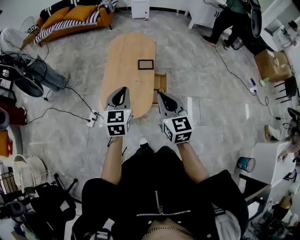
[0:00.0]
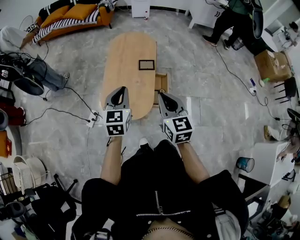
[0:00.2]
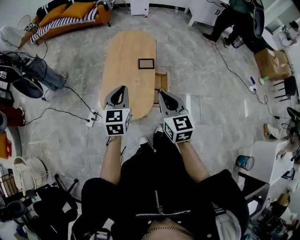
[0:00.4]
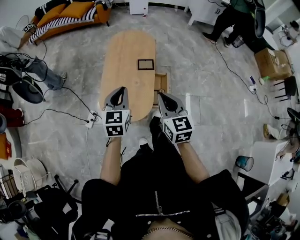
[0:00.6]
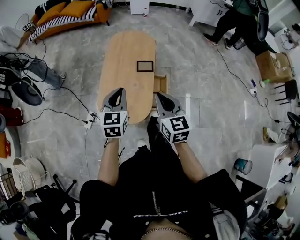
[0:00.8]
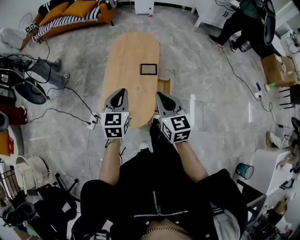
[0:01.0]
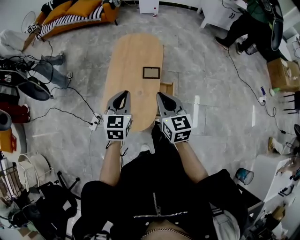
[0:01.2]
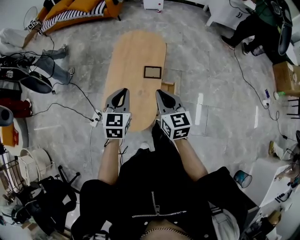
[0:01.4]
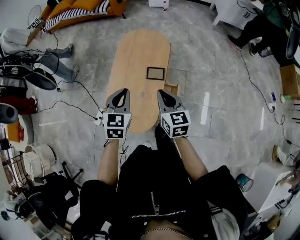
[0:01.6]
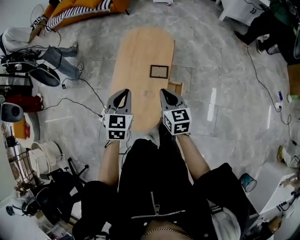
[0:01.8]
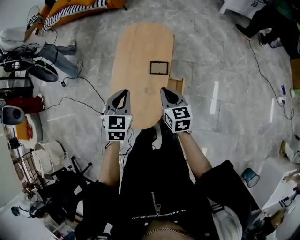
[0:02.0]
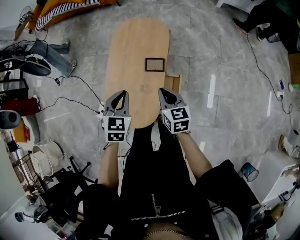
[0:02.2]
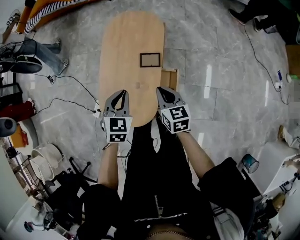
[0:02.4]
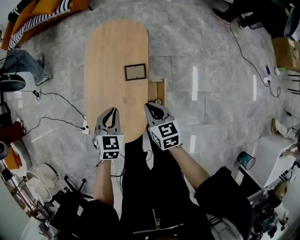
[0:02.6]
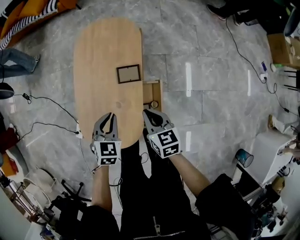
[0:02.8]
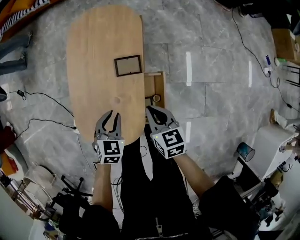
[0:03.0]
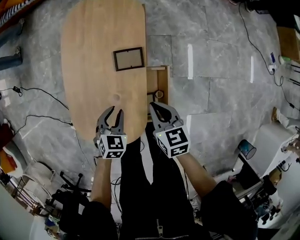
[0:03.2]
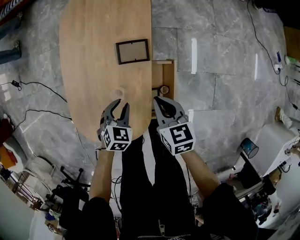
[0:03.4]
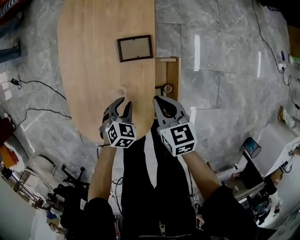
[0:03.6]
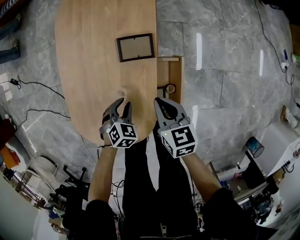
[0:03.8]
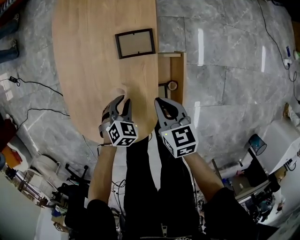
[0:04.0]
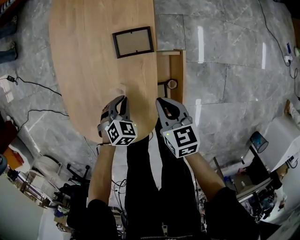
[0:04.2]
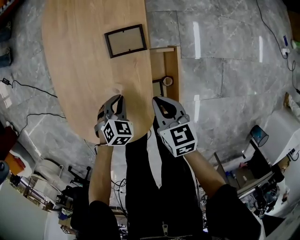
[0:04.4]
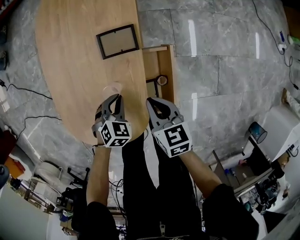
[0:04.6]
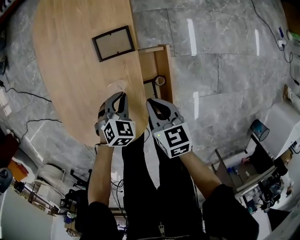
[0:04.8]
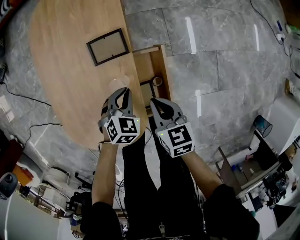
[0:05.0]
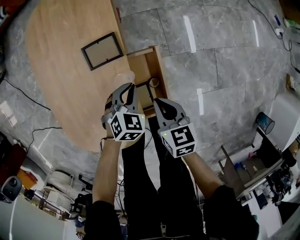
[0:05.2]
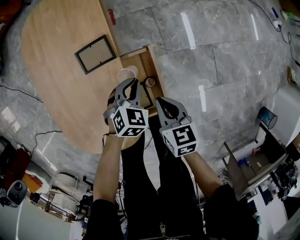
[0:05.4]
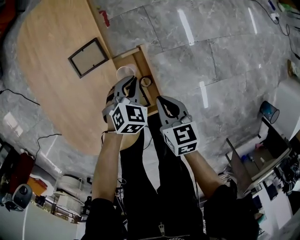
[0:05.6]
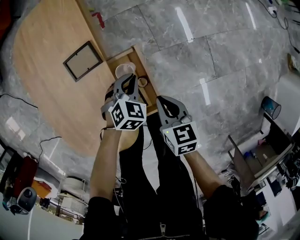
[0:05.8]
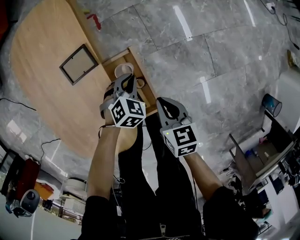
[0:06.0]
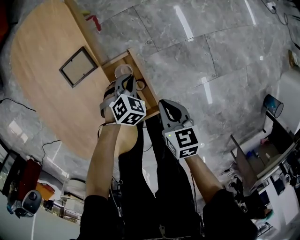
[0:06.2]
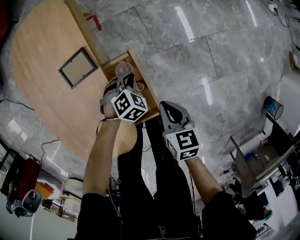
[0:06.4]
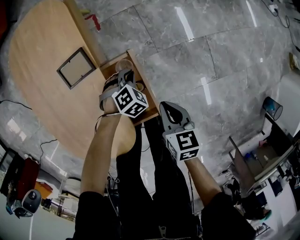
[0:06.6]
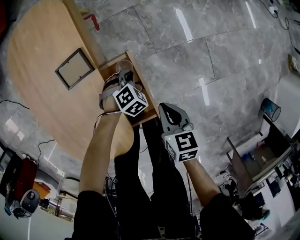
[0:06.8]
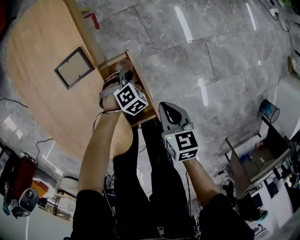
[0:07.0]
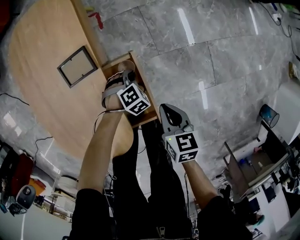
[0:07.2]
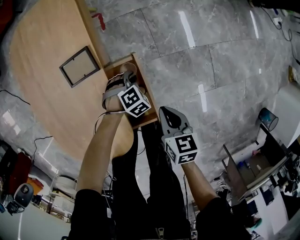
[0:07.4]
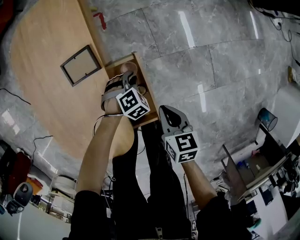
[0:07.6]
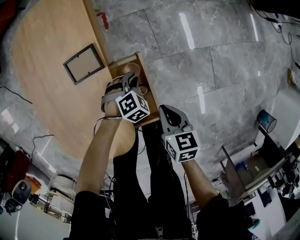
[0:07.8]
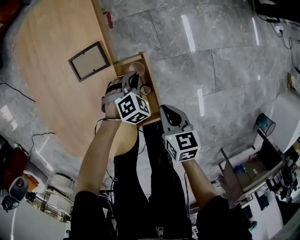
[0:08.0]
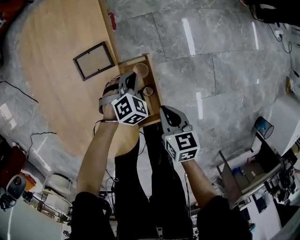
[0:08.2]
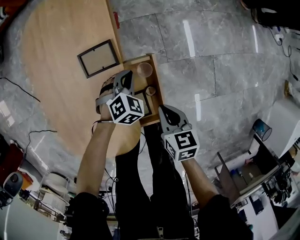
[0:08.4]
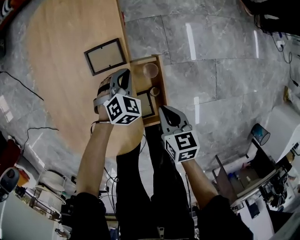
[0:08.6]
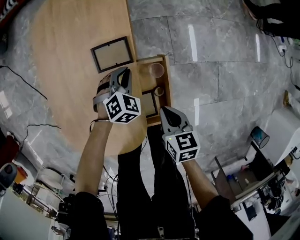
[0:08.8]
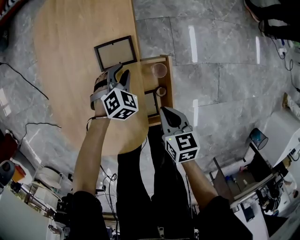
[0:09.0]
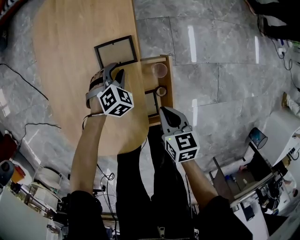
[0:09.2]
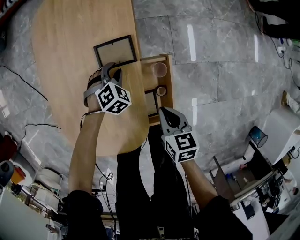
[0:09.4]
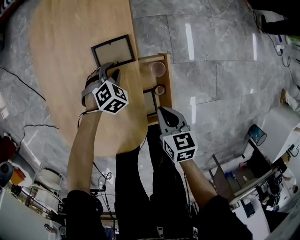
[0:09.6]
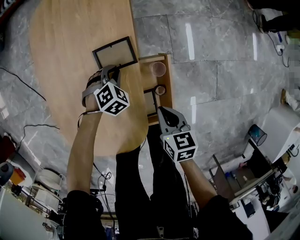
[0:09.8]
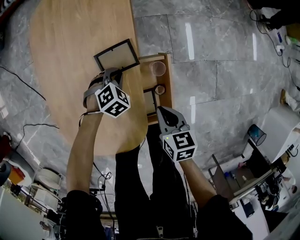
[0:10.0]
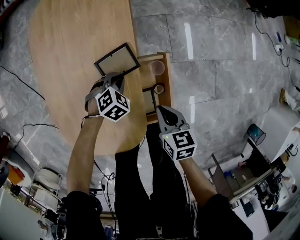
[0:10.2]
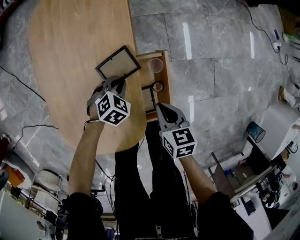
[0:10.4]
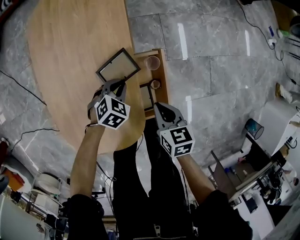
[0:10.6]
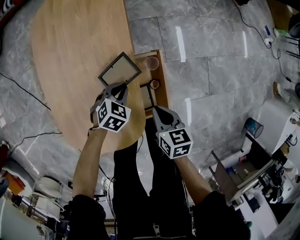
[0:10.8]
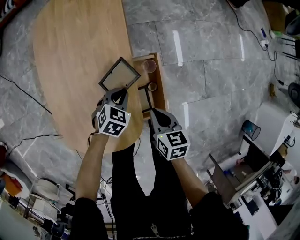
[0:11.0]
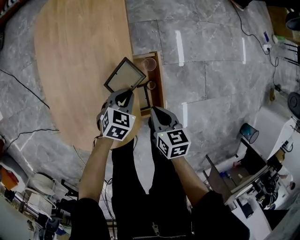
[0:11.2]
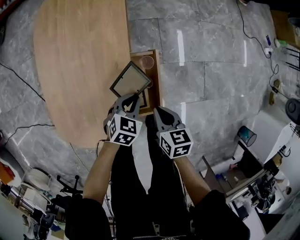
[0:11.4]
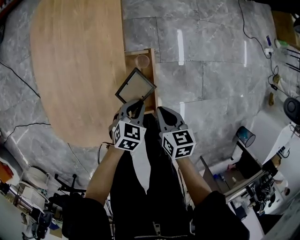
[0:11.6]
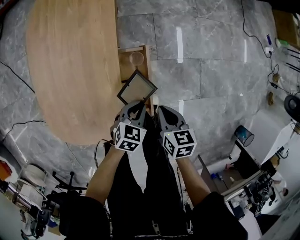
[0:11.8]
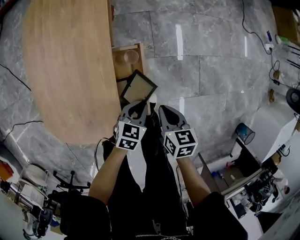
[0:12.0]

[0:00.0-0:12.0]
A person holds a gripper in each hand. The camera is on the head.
0:00.0 to 0:01.6: Both grippers travel together forward, some 25 cm.
0:01.6 to 0:03.0: The two grippers go about 25 cm downward. The right gripper rotates some 20 degrees, while the left gripper changes its angle by about 20 degrees.
0:03.0 to 0:04.4: The grippers both shift downward by roughly 20 cm. The left gripper changes its angle by about 20 degrees.
0:04.4 to 0:06.0: The two grippers go roughly 20 cm to the right. The right gripper swivels about 20 degrees, while the left gripper rotates roughly 20 degrees.
0:06.0 to 0:07.6: The left gripper heads downward, covering about 5 cm.
0:07.6 to 0:09.0: The right gripper goes some 10 cm to the left, while the left gripper shifts approximately 20 cm to the left, upward and forward, and swivels roughly 20 degrees.
0:09.0 to 0:10.4: The left gripper travels backward by approximately 5 cm.
0:10.4 to 0:12.0: The right gripper goes some 15 cm to the right, while the left gripper travels to the right and backward by roughly 25 cm, and rotates about 40 degrees.

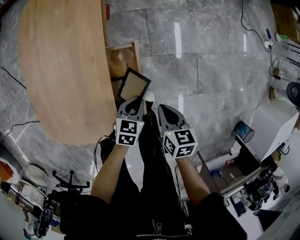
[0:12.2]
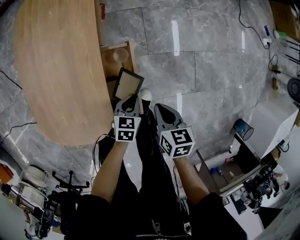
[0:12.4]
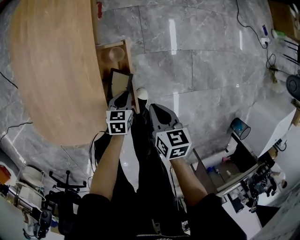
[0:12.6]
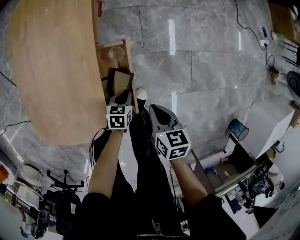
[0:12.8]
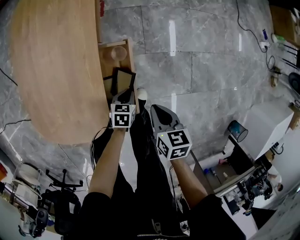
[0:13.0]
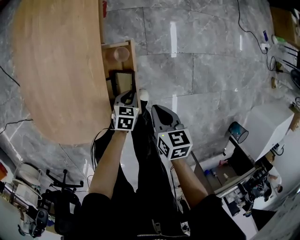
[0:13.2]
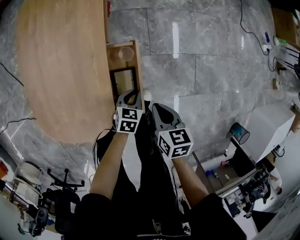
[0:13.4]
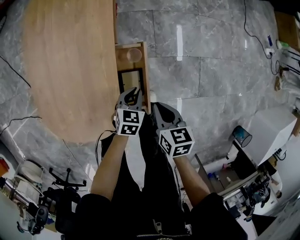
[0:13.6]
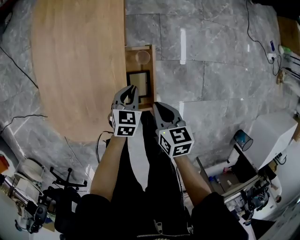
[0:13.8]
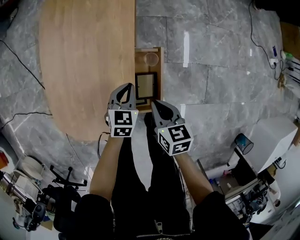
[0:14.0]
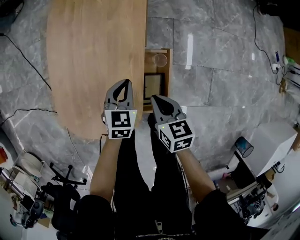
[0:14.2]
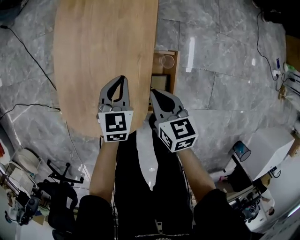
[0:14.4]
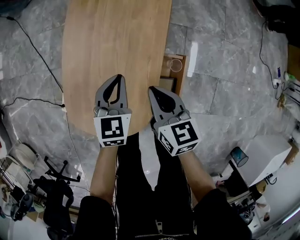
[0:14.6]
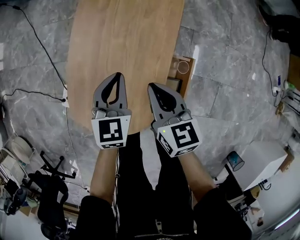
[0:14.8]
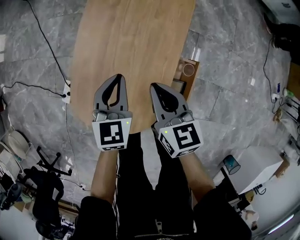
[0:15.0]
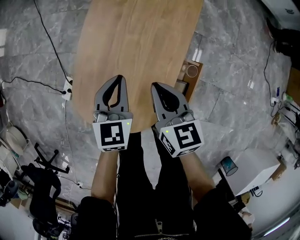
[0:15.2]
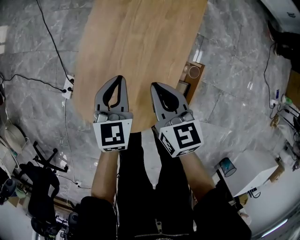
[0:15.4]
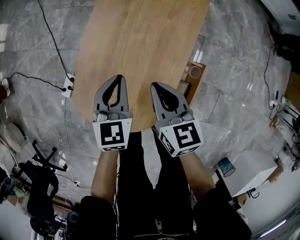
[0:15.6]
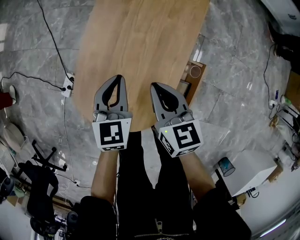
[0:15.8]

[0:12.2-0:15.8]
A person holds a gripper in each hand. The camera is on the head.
0:12.2 to 0:14.0: The right gripper travels to the left by some 10 cm. Meanwhile the left gripper travels to the left and forward by some 15 cm.
0:14.0 to 0:15.8: The left gripper is displaced to the left and upward by roughly 25 cm, and changes its angle by approximately 30 degrees; the right gripper goes about 25 cm to the left, forward and upward, and rotates about 30 degrees.

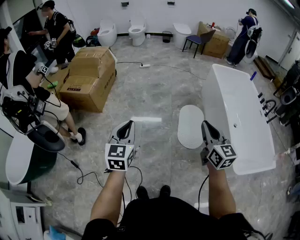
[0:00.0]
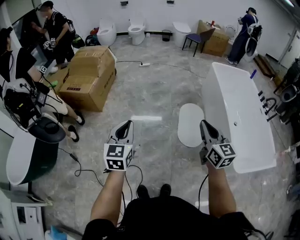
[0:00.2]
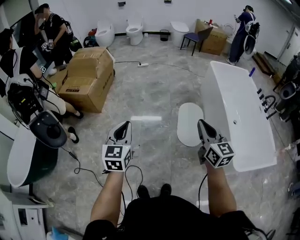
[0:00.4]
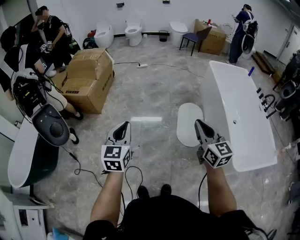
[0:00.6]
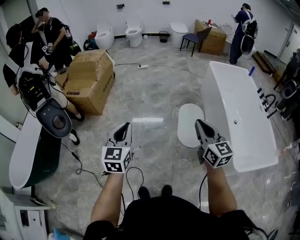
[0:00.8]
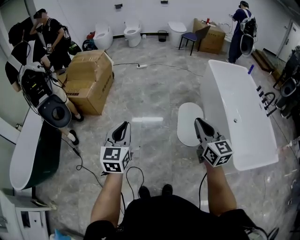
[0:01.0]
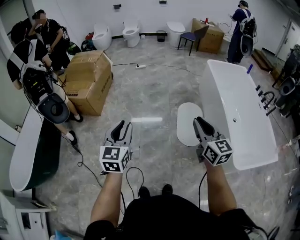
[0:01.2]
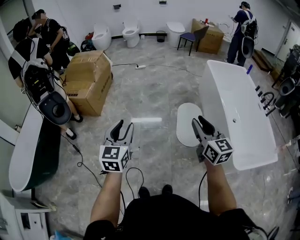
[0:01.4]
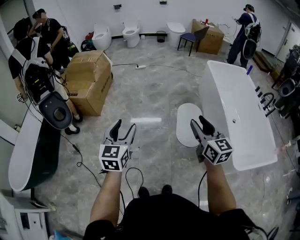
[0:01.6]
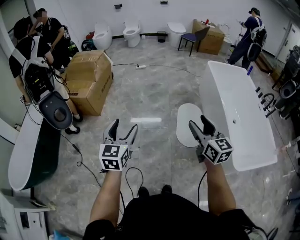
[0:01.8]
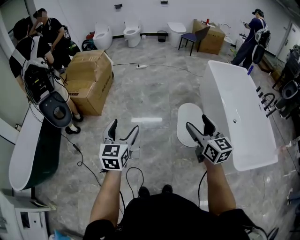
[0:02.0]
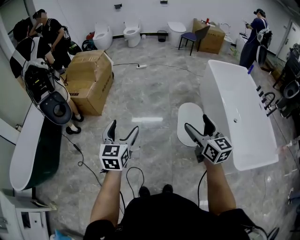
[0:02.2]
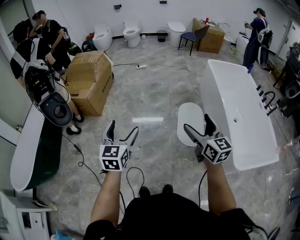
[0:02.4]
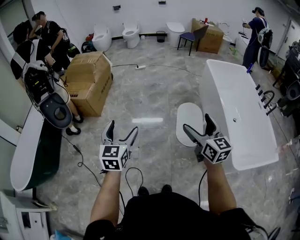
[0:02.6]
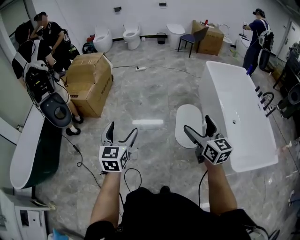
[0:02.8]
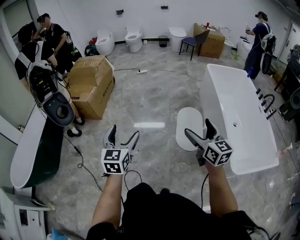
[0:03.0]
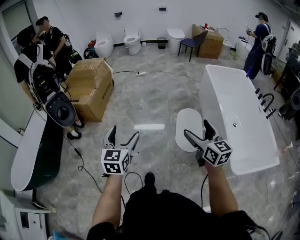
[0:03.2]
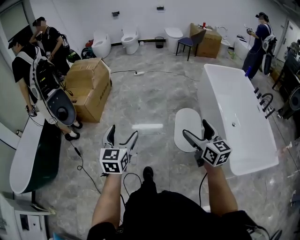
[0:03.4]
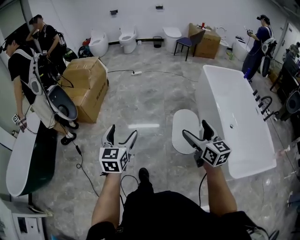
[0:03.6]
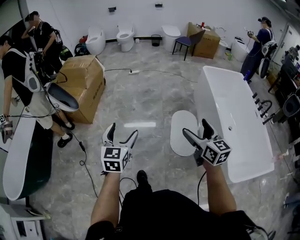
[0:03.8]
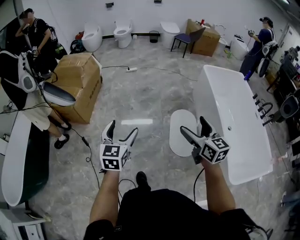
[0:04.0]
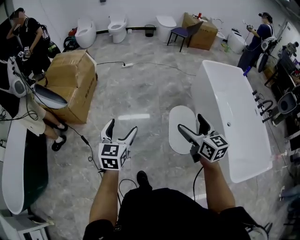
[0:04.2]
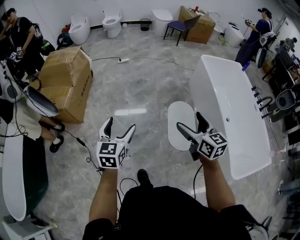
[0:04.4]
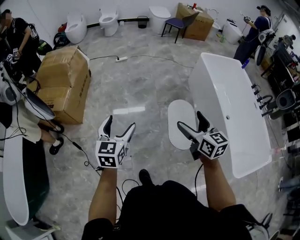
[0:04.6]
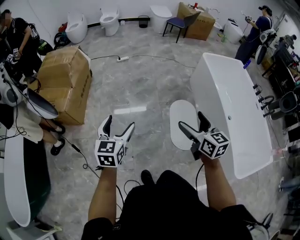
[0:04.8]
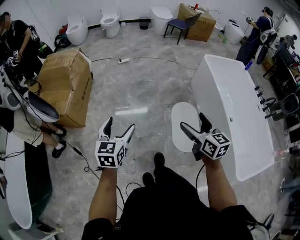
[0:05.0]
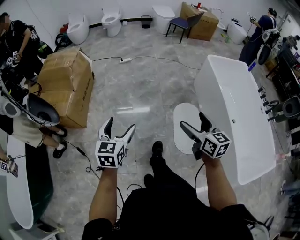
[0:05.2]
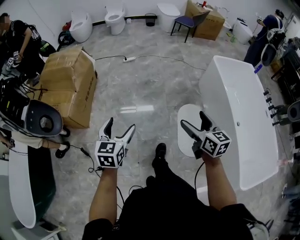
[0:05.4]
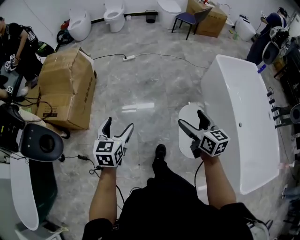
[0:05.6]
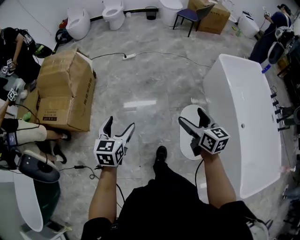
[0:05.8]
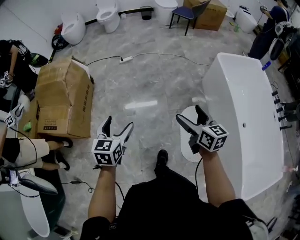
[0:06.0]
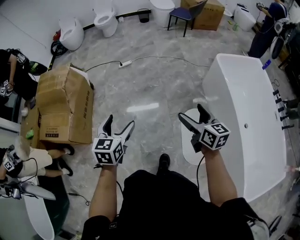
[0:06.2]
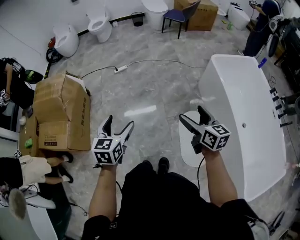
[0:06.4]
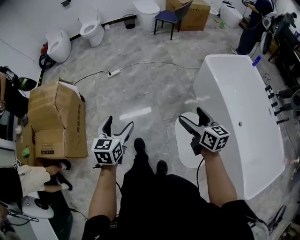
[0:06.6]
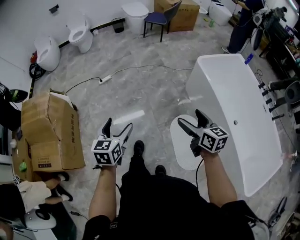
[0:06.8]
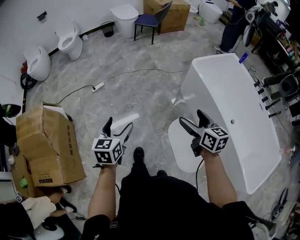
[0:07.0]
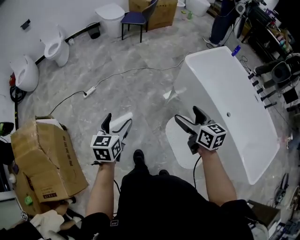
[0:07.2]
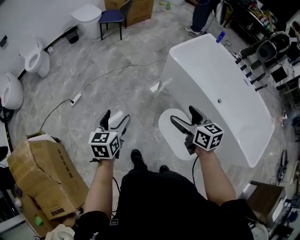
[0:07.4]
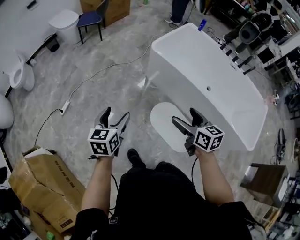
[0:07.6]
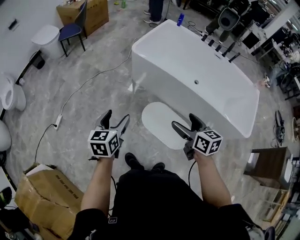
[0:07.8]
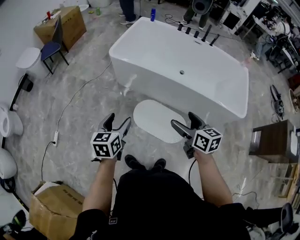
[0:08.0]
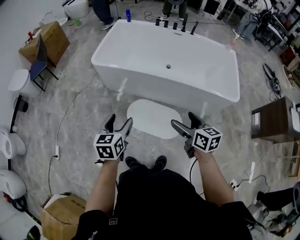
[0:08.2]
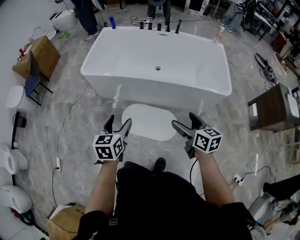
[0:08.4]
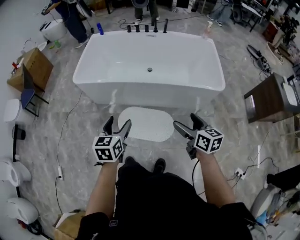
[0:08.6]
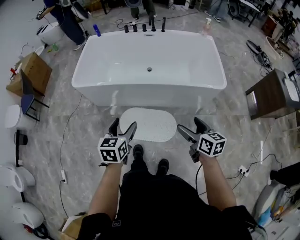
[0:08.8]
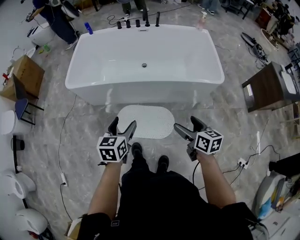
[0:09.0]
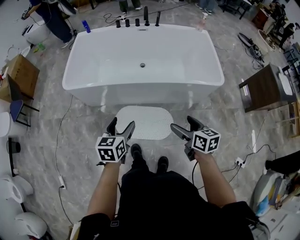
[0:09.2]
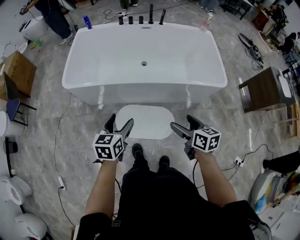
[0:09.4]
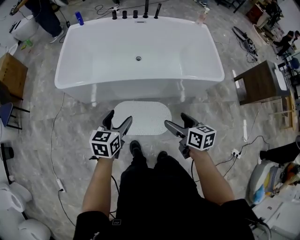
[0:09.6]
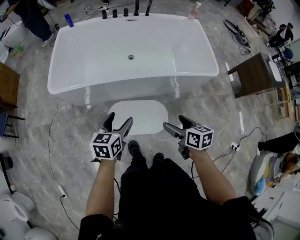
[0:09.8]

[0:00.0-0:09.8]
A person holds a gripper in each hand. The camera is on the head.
0:00.0 to 0:01.4: The grippers stay close to where they were, moving slightly.
0:01.4 to 0:02.8: The left gripper opens up, while the right gripper opens.
0:02.8 to 0:04.2: Both grippers travel together forward, some 20 cm.
0:04.2 to 0:05.6: Both grippers travel together forward, some 25 cm.
0:05.6 to 0:07.0: The left gripper goes approximately 35 cm forward; the right gripper heads forward and to the right, covering approximately 30 cm.
0:07.0 to 0:08.4: The left gripper changes place by some 35 cm, and turns by roughly 60 degrees, while the right gripper shifts by roughly 35 cm, and swivels approximately 60 degrees.
0:08.4 to 0:09.8: The right gripper moves downward, to the left and forward, some 10 cm, and changes its angle by approximately 20 degrees; the left gripper moves forward and downward, approximately 15 cm, and rotates roughly 30 degrees.
